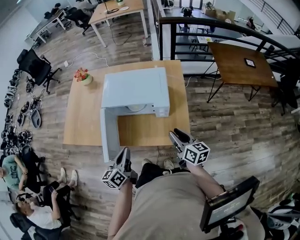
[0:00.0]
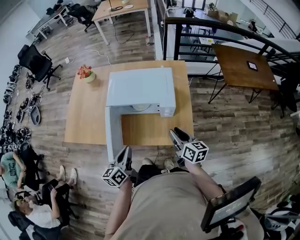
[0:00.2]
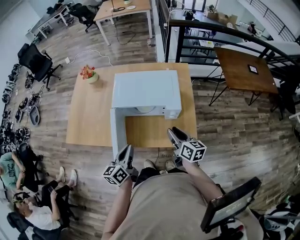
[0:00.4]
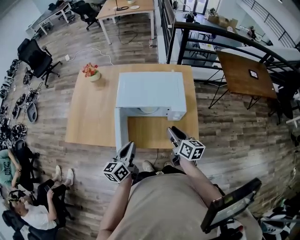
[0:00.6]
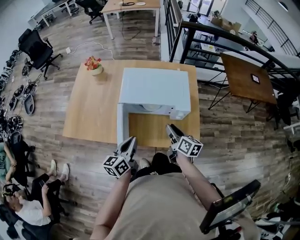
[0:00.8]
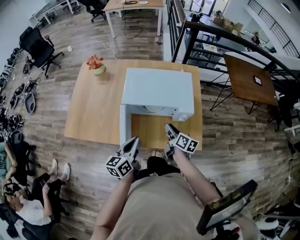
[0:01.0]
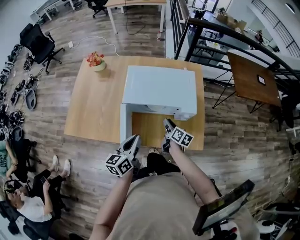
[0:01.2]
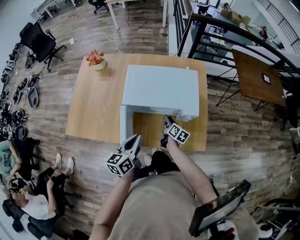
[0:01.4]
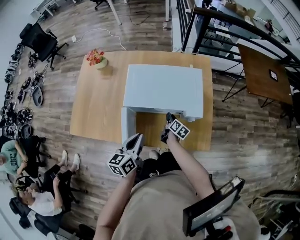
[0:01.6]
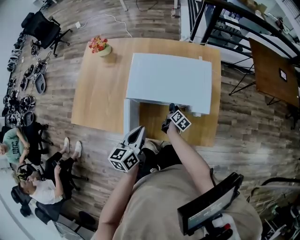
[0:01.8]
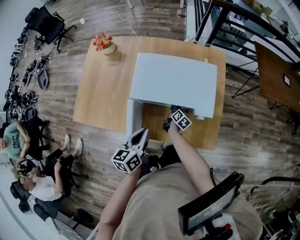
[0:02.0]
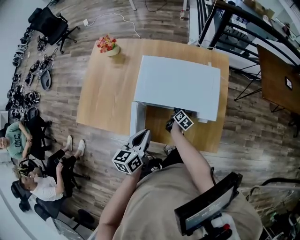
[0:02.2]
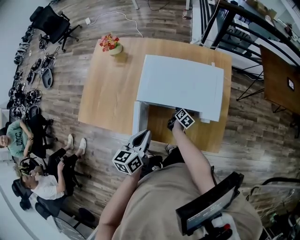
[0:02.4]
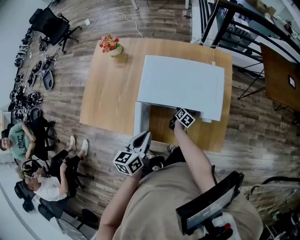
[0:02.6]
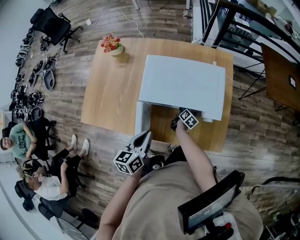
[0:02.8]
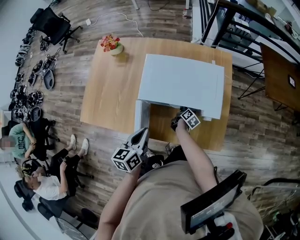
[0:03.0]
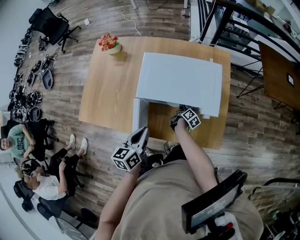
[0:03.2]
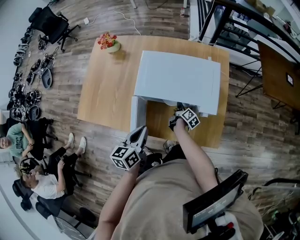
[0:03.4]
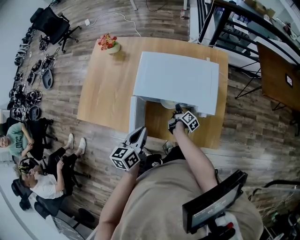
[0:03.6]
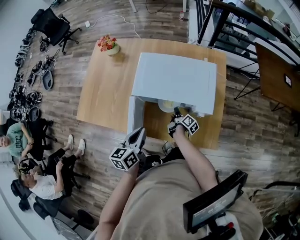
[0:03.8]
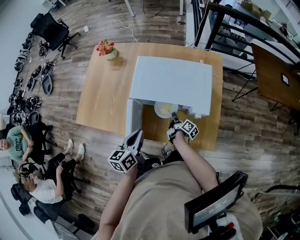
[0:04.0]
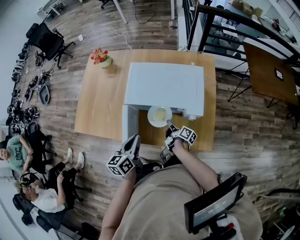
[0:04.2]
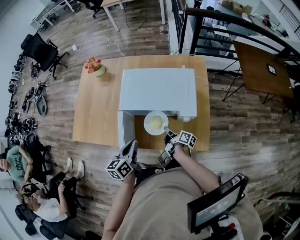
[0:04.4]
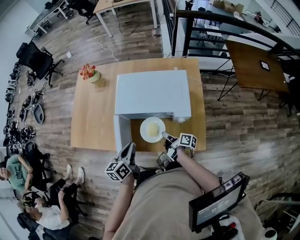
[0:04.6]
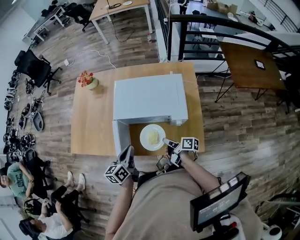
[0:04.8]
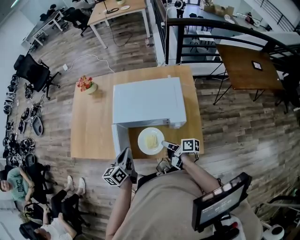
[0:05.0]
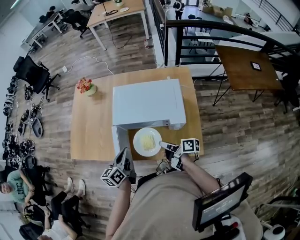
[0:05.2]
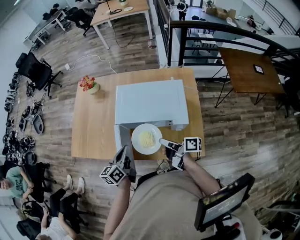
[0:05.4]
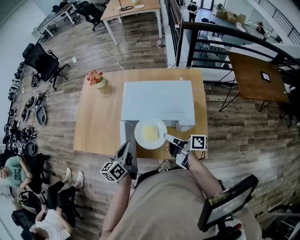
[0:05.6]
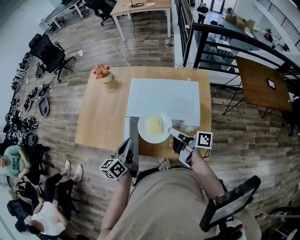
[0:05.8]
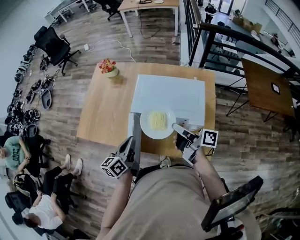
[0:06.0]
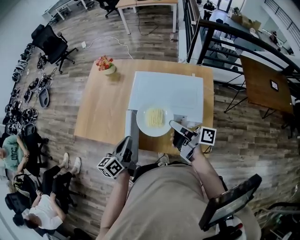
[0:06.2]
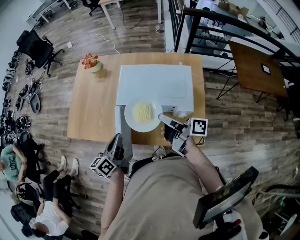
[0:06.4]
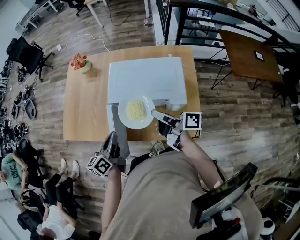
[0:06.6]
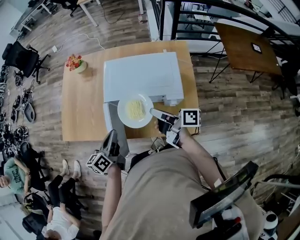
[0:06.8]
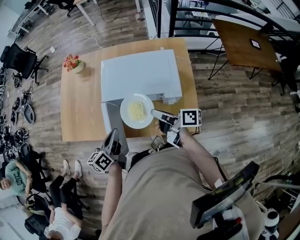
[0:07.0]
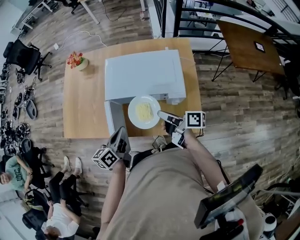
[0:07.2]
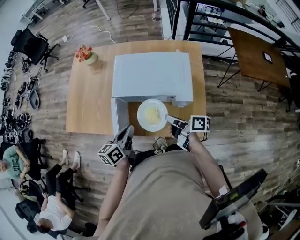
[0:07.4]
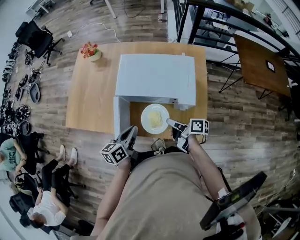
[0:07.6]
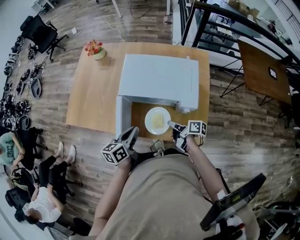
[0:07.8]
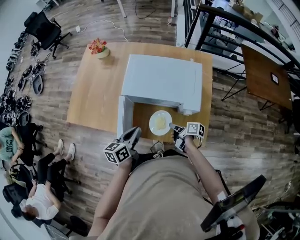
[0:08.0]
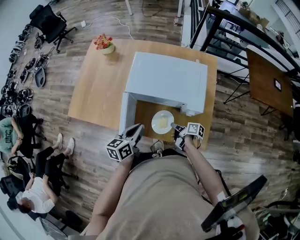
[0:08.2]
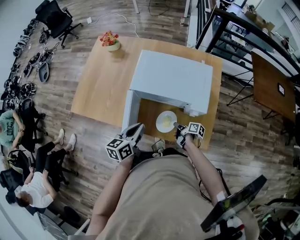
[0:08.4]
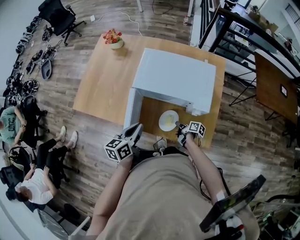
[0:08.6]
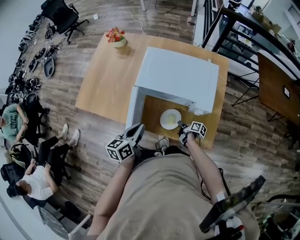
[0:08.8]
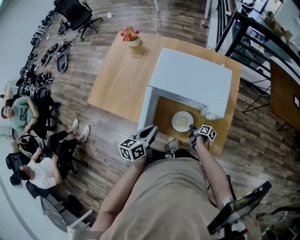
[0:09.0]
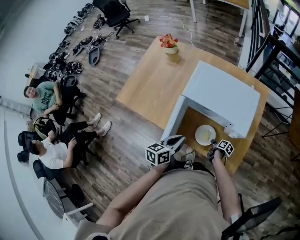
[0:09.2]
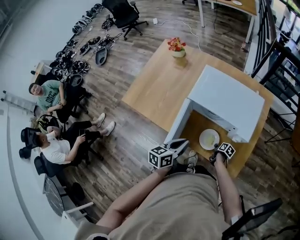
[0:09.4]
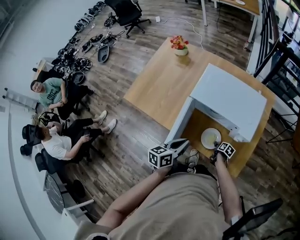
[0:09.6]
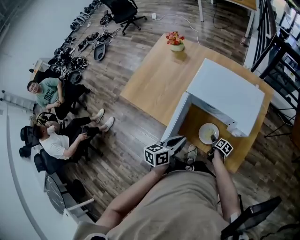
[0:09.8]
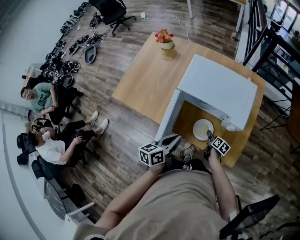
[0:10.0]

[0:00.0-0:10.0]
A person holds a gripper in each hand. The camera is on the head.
0:00.0 to 0:01.4: The left gripper heads forward and to the left, covering about 15 cm. Meanwhile the right gripper moves downward, forward and to the left, some 30 cm, and swivels about 30 degrees.
0:01.4 to 0:02.8: The right gripper shifts some 15 cm downward and forward.
0:02.8 to 0:04.2: The right gripper moves backward and upward, about 15 cm, and turns by about 40 degrees.
0:04.2 to 0:05.8: The right gripper travels upward by some 25 cm, and turns by some 30 degrees; the left gripper moves upward, approximately 5 cm.
0:05.8 to 0:07.2: The left gripper ends up about 5 cm from where it was. The right gripper is displaced downward by about 5 cm.
0:07.2 to 0:08.6: The right gripper moves downward, approximately 30 cm, and changes its angle by approximately 30 degrees.
0:08.6 to 0:10.0: The left gripper ends up approximately 5 cm from where it was. The right gripper rotates roughly 30 degrees, and opens.

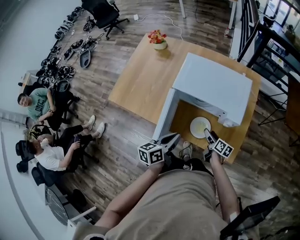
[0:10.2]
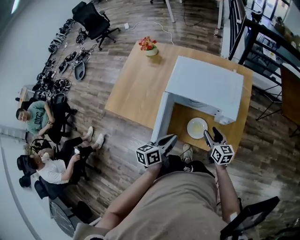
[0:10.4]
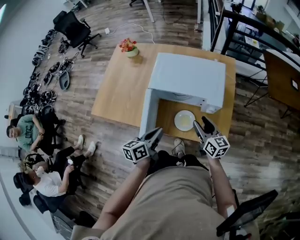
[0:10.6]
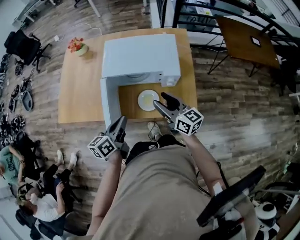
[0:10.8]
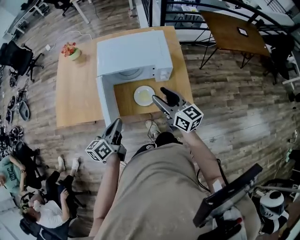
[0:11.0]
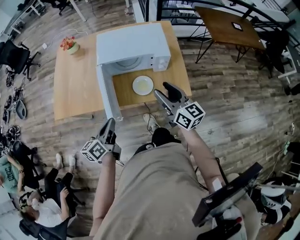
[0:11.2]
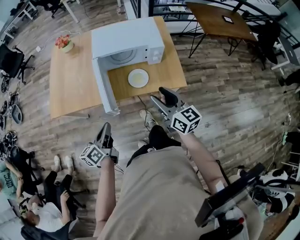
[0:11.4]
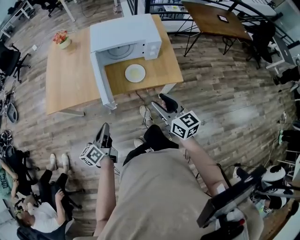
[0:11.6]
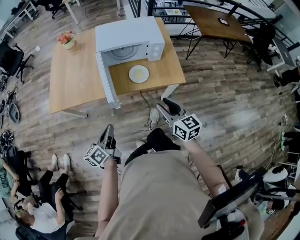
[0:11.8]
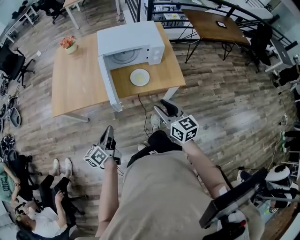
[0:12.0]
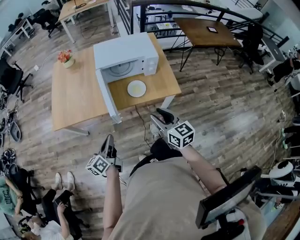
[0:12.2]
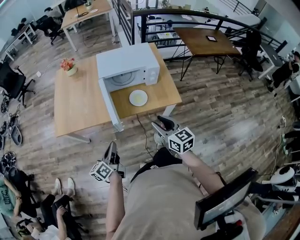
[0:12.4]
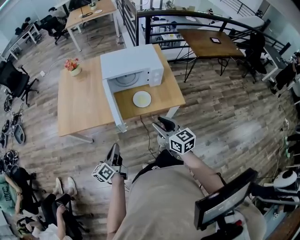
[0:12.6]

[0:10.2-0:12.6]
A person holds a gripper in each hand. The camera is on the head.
0:10.2 to 0:11.4: The right gripper goes about 35 cm upward and backward, and swivels some 40 degrees, while the left gripper shifts about 20 cm backward and to the left.
0:11.4 to 0:12.6: The left gripper is displaced backward by about 5 cm. Meanwhile the right gripper goes about 10 cm backward and to the left.

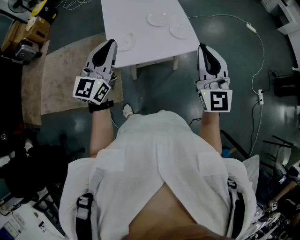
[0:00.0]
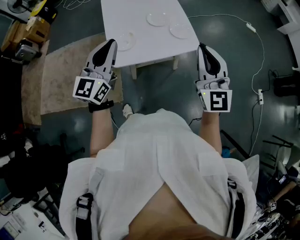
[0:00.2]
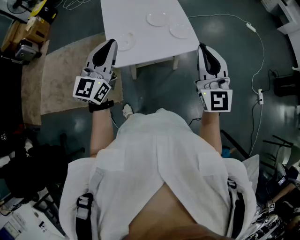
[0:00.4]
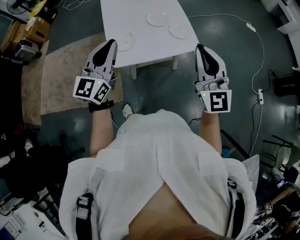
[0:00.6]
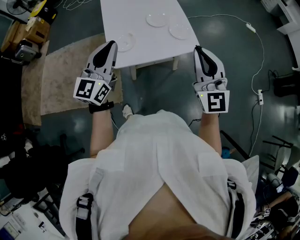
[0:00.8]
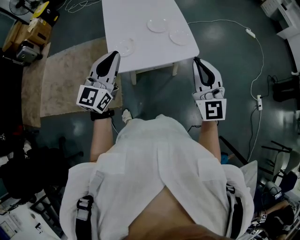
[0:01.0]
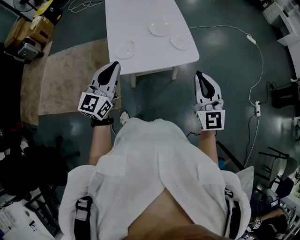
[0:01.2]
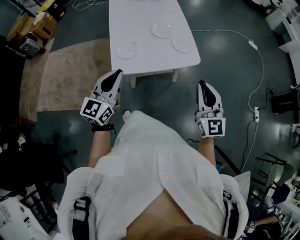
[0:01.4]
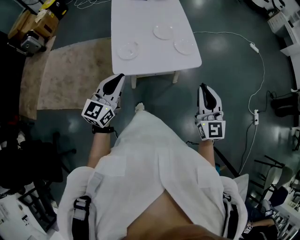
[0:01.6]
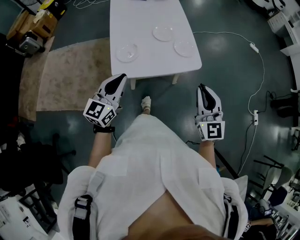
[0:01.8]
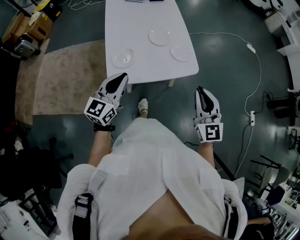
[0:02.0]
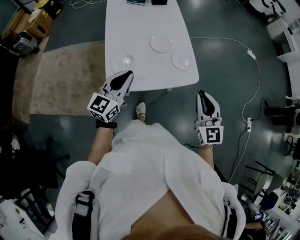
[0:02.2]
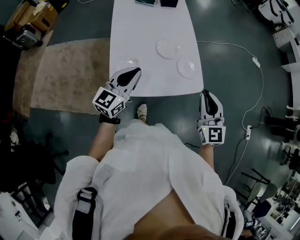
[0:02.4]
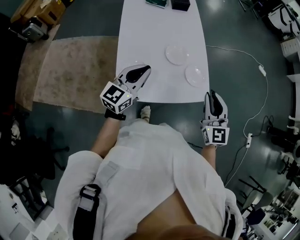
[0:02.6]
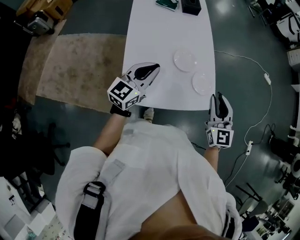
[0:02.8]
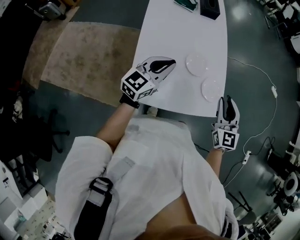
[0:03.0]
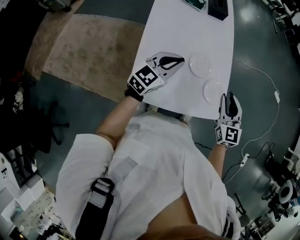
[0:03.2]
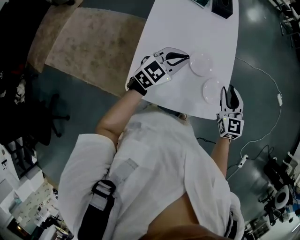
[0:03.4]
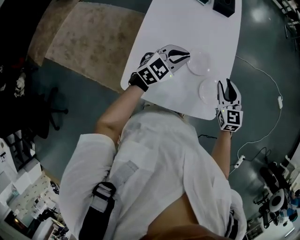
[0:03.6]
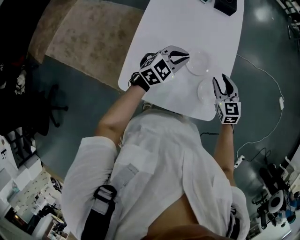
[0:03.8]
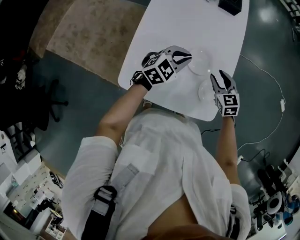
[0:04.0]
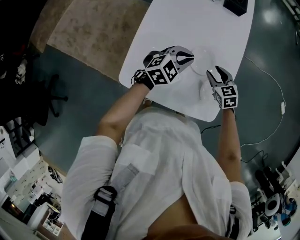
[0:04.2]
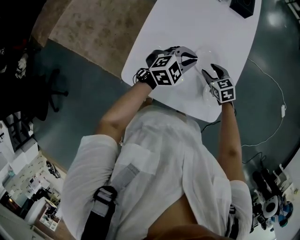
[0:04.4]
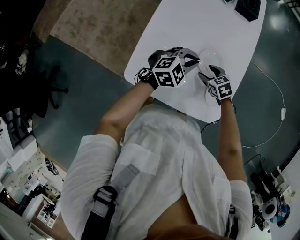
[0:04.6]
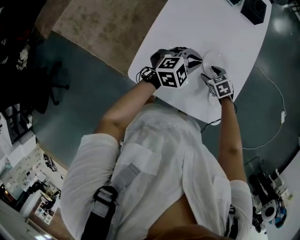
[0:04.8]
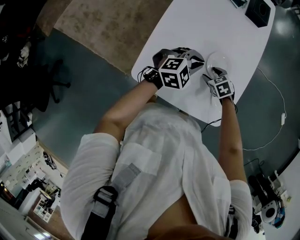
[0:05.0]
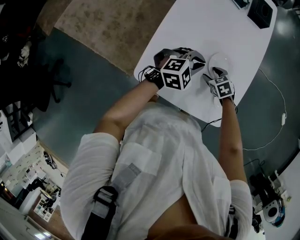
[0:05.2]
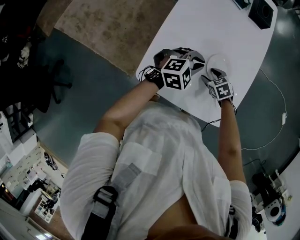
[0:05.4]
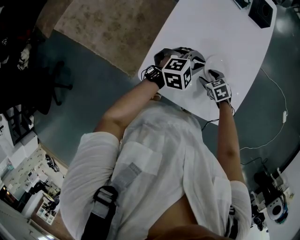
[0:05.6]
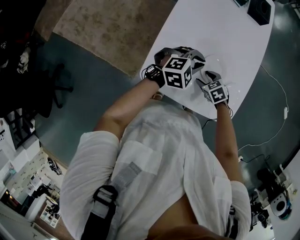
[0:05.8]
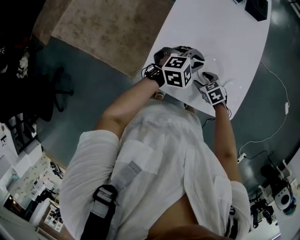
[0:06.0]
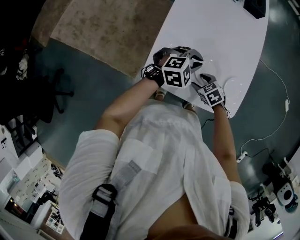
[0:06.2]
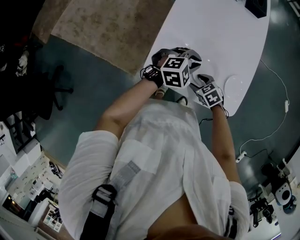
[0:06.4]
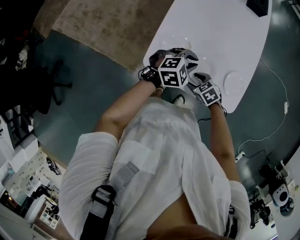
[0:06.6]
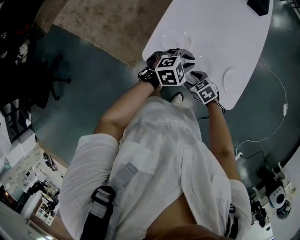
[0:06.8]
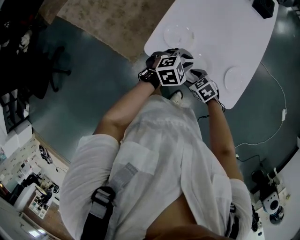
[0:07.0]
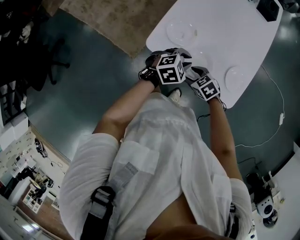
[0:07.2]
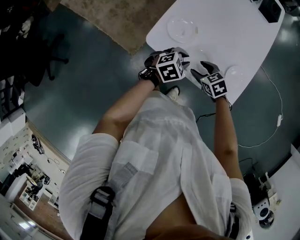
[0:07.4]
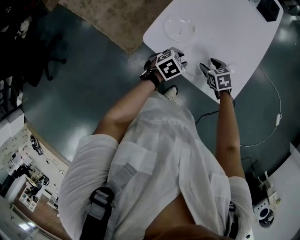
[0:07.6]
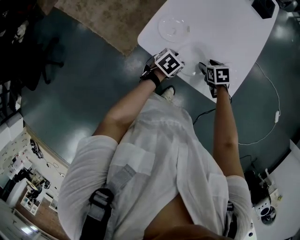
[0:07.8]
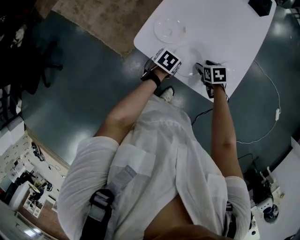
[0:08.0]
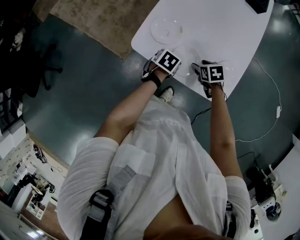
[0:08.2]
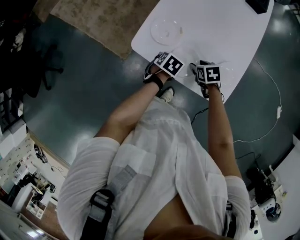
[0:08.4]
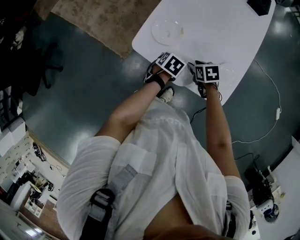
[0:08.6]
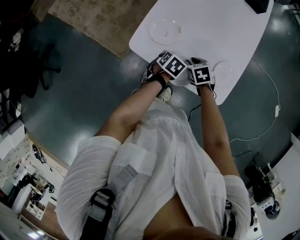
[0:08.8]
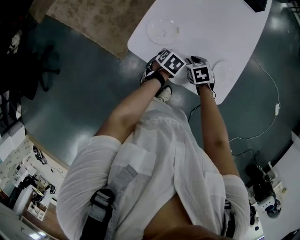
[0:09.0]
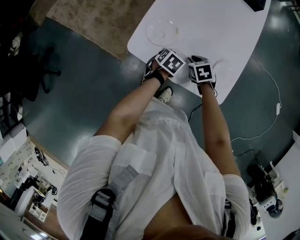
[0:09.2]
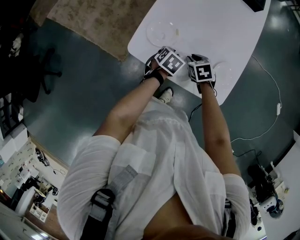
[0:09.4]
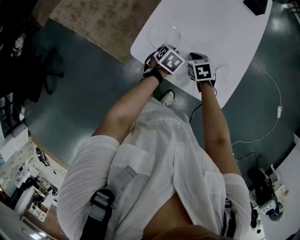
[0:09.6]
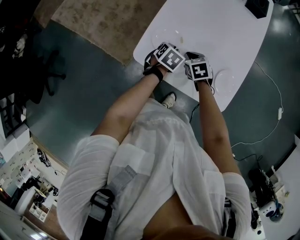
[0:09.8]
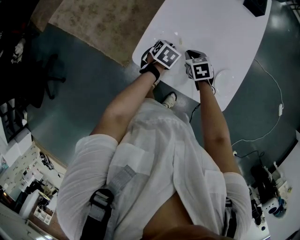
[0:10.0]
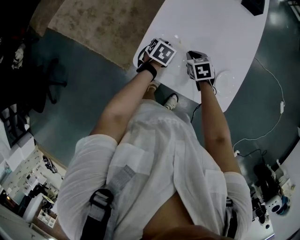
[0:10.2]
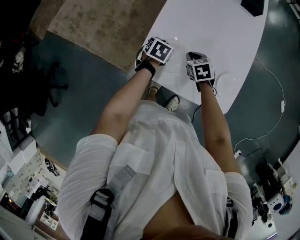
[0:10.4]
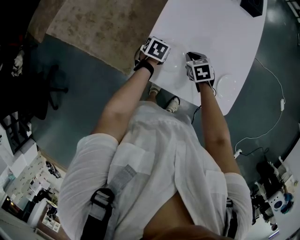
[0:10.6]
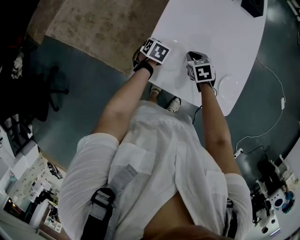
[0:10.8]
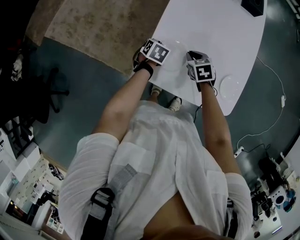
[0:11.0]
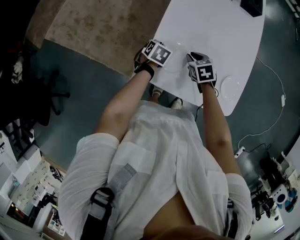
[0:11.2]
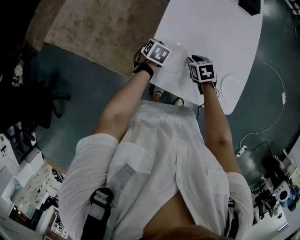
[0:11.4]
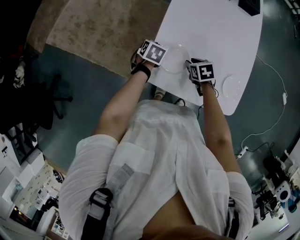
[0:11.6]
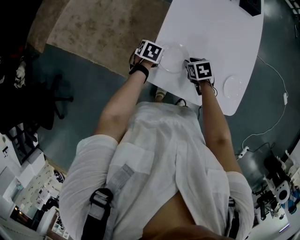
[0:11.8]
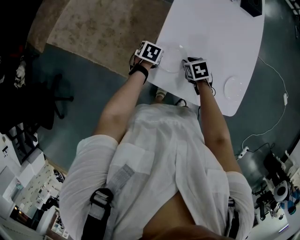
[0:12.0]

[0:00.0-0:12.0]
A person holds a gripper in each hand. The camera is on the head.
0:00.0 to 0:01.6: The right gripper goes some 10 cm downward, while the left gripper heads downward and backward, covering approximately 10 cm.
0:01.6 to 0:03.0: Both grippers move forward, approximately 30 cm.
0:03.0 to 0:04.4: The right gripper travels downward and forward by about 25 cm, points its fingers about 40 degrees further downward, and opens. The left gripper moves downward, to the right and forward, approximately 15 cm, and changes its angle by some 30 degrees.
0:04.4 to 0:06.0: The right gripper ends up roughly 15 cm from where it was, while the left gripper moves about 10 cm.
0:06.0 to 0:07.6: The left gripper shifts by about 15 cm, rolls counterclockwise, seen from behind, by approximately 40 degrees, and opens.
0:07.6 to 0:09.0: The right gripper closes its fingers, while the left gripper moves some 5 cm, and turns by approximately 20 degrees.
0:09.0 to 0:10.4: The left gripper goes some 15 cm forward and to the left. Meanwhile the right gripper shifts about 10 cm forward and to the left.
0:10.4 to 0:12.0: The right gripper is displaced to the left by some 5 cm, and opens its fingers. Meanwhile the left gripper shifts approximately 10 cm to the left.
